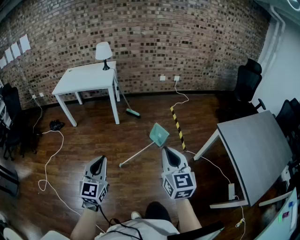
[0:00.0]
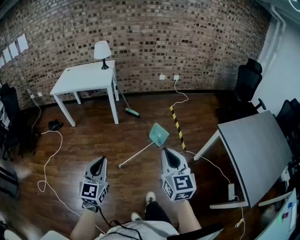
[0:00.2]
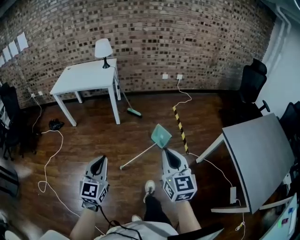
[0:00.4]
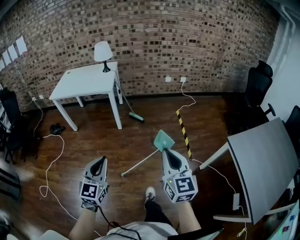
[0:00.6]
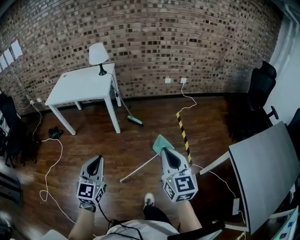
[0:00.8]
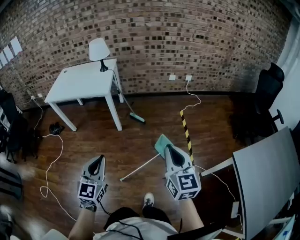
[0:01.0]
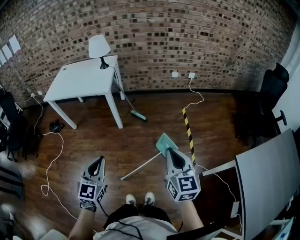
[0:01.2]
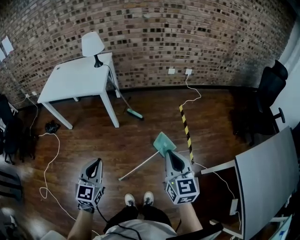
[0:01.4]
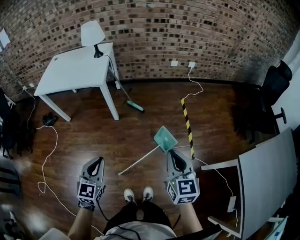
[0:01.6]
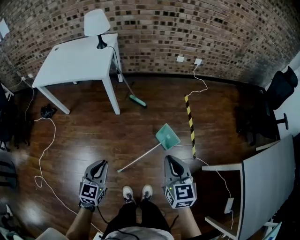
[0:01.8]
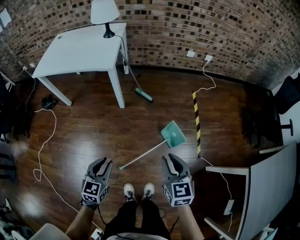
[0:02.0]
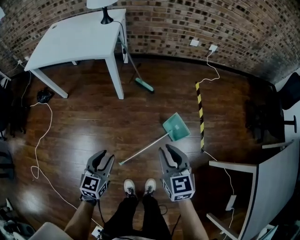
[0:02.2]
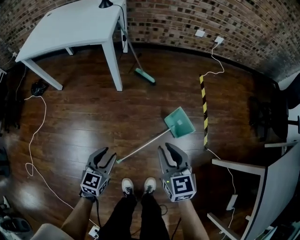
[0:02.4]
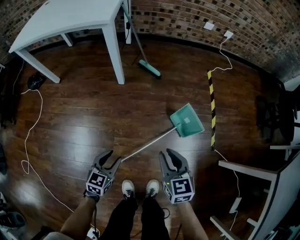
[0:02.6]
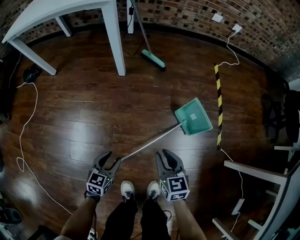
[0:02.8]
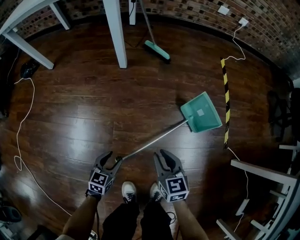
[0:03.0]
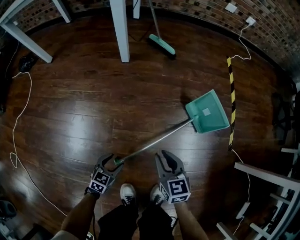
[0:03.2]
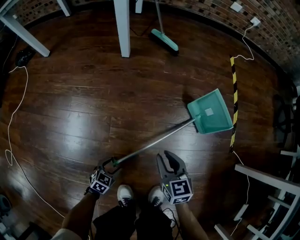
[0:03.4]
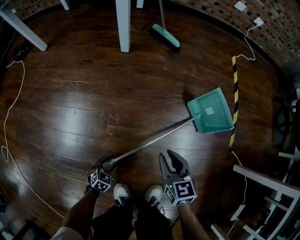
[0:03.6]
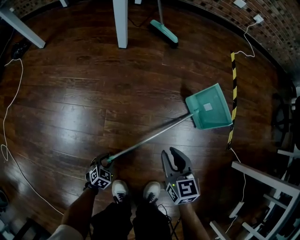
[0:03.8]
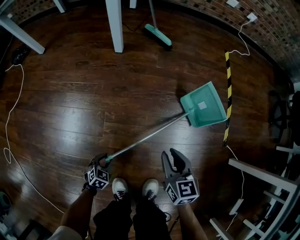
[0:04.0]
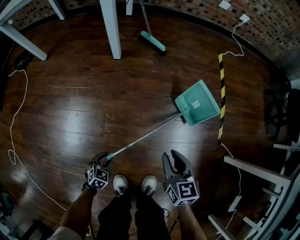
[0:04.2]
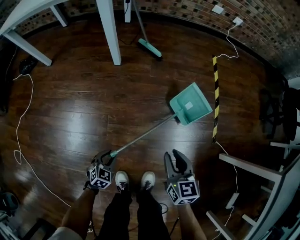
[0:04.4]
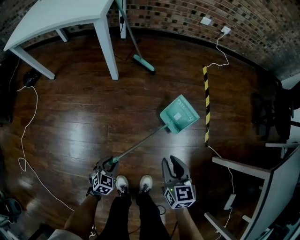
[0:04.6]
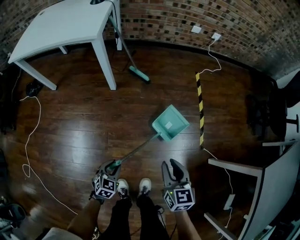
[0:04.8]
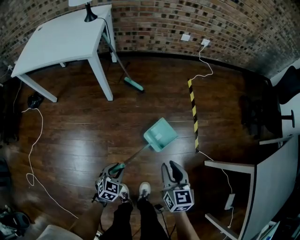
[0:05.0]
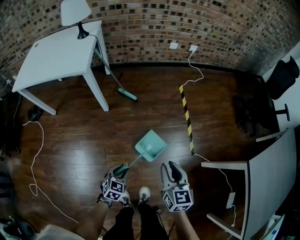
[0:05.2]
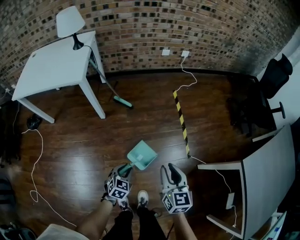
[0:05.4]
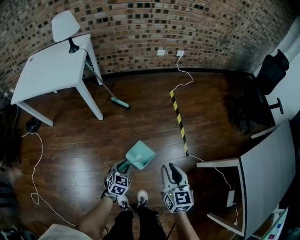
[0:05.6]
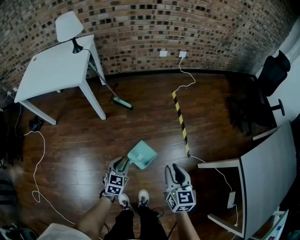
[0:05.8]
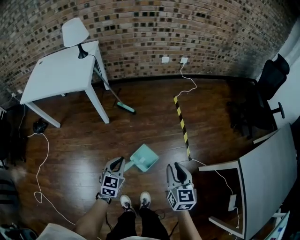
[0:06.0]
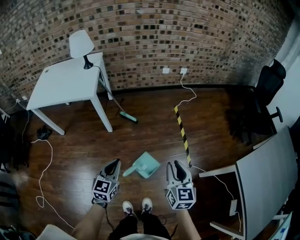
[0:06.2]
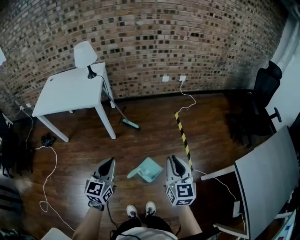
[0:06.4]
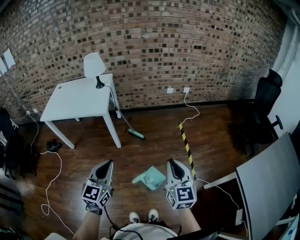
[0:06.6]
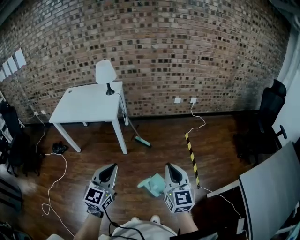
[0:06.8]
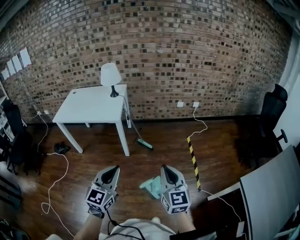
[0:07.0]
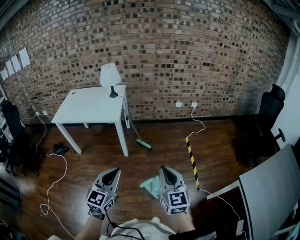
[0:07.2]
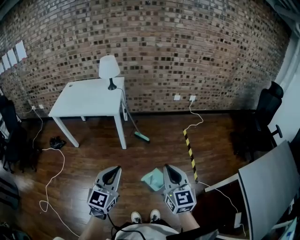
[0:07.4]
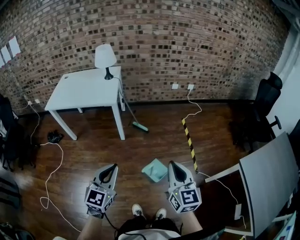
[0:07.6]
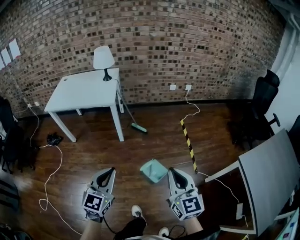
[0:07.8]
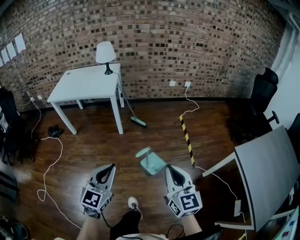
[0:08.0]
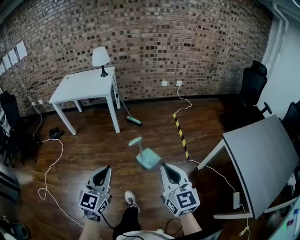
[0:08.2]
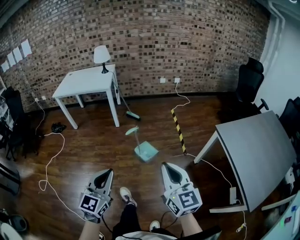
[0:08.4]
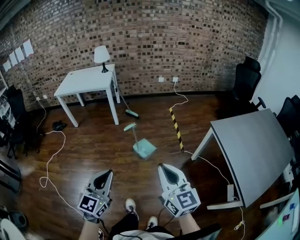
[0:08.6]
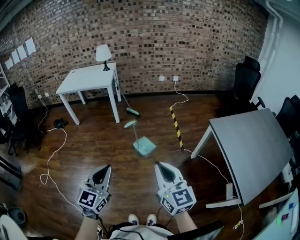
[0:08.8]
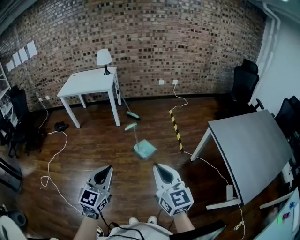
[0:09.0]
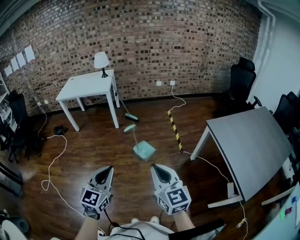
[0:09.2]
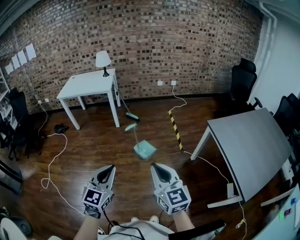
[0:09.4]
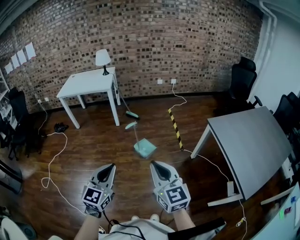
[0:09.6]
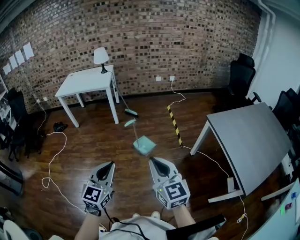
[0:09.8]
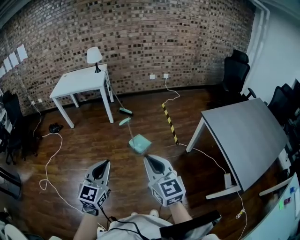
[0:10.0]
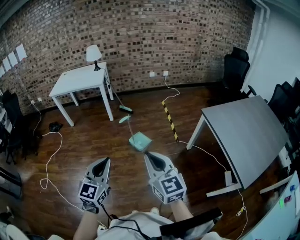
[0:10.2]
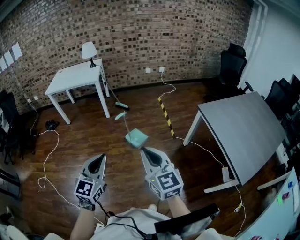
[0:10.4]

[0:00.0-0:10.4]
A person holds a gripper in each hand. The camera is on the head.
0:00.0 to 0:01.4: The grippers both shift forward by approximately 35 cm.
0:01.4 to 0:03.0: Both grippers travel together downward, some 70 cm. The left gripper swivels roughly 30 degrees, and opens its fingers, while the right gripper changes its angle by roughly 30 degrees, and opens its fingers.
0:03.0 to 0:04.4: The right gripper travels upward and to the right by some 15 cm. The left gripper goes downward and returns, some 20 cm each way, and changes its angle by some 20 degrees.
0:04.4 to 0:06.0: The left gripper shifts roughly 50 cm upward, changes its angle by some 30 degrees, and closes up; the right gripper is displaced upward and to the right by some 40 cm.
0:06.0 to 0:07.4: The right gripper shifts approximately 25 cm upward and to the left, changes its angle by approximately 20 degrees, and closes up. Meanwhile the left gripper heads upward and backward, covering roughly 30 cm, and turns by about 30 degrees.
0:07.4 to 0:09.0: The two grippers travel together, backward, some 50 cm.
0:09.0 to 0:10.4: The grippers stay close to where they were, moving slightly.

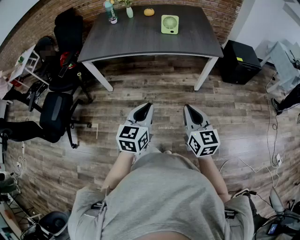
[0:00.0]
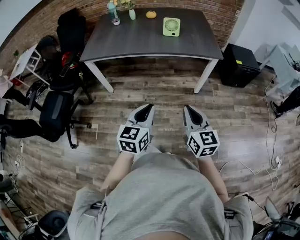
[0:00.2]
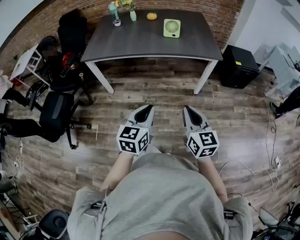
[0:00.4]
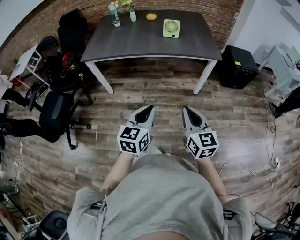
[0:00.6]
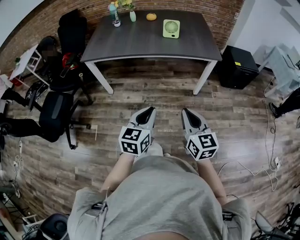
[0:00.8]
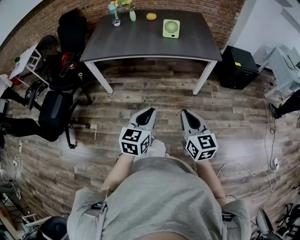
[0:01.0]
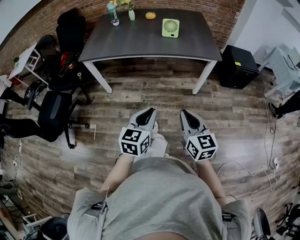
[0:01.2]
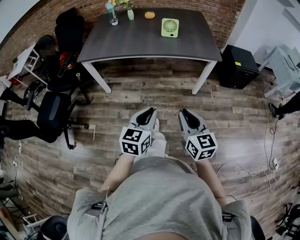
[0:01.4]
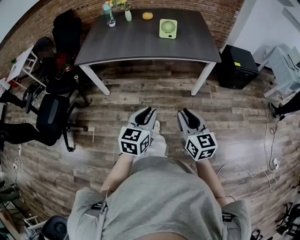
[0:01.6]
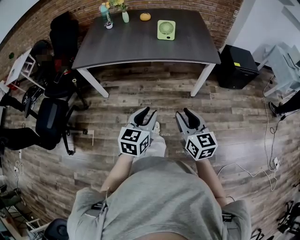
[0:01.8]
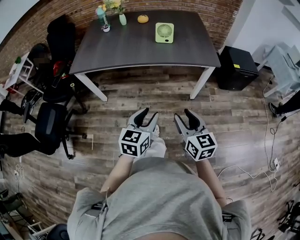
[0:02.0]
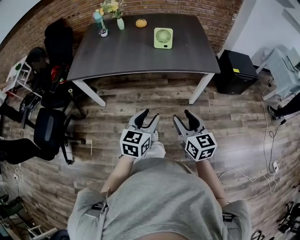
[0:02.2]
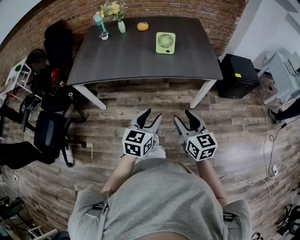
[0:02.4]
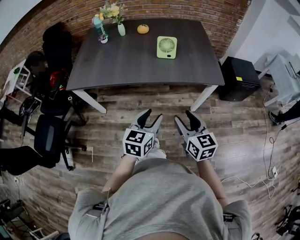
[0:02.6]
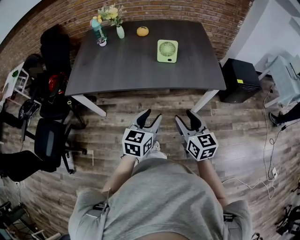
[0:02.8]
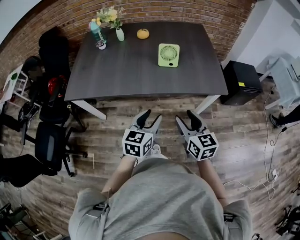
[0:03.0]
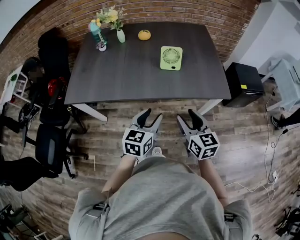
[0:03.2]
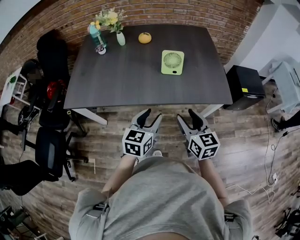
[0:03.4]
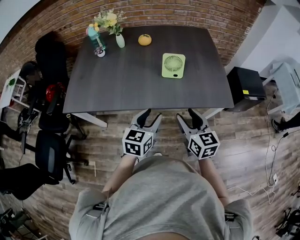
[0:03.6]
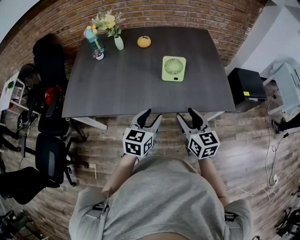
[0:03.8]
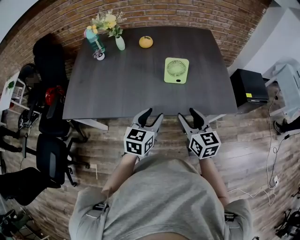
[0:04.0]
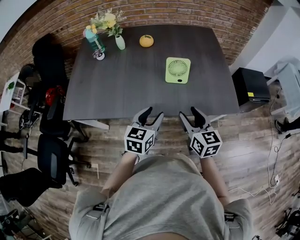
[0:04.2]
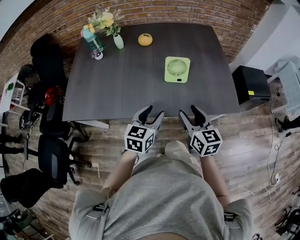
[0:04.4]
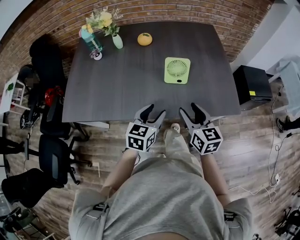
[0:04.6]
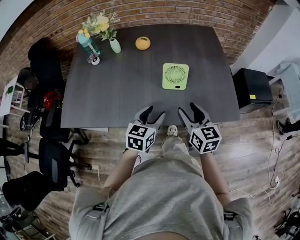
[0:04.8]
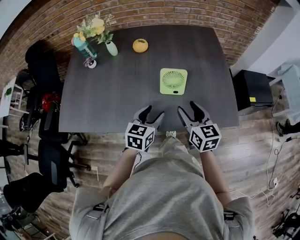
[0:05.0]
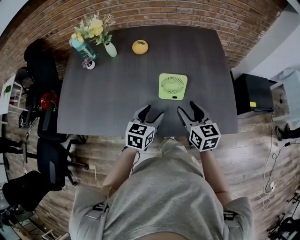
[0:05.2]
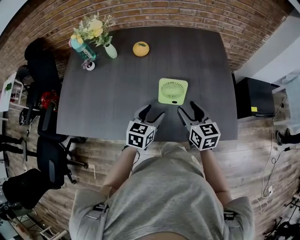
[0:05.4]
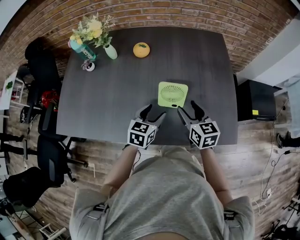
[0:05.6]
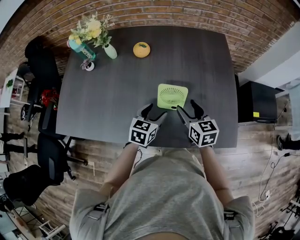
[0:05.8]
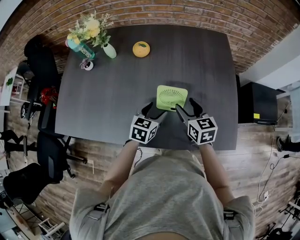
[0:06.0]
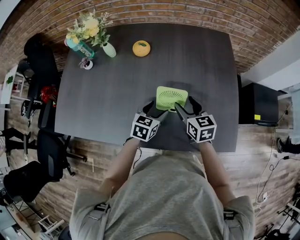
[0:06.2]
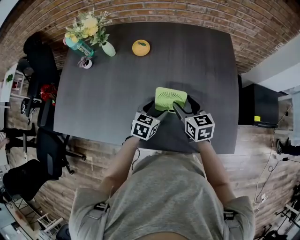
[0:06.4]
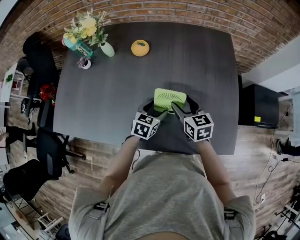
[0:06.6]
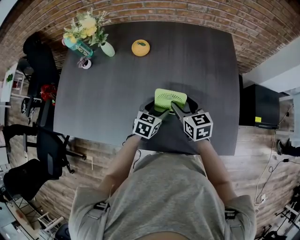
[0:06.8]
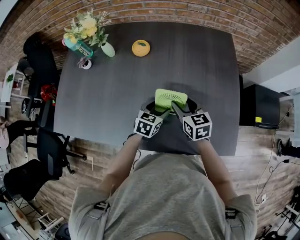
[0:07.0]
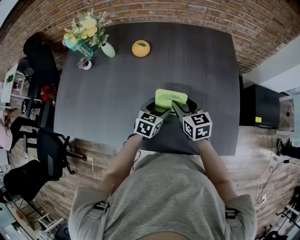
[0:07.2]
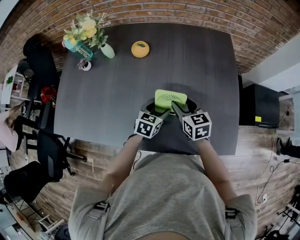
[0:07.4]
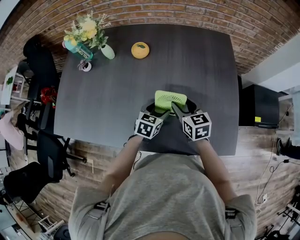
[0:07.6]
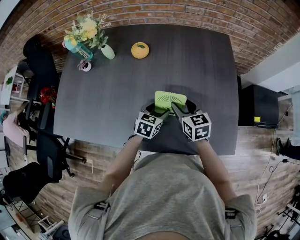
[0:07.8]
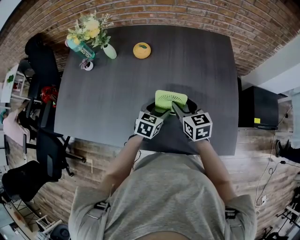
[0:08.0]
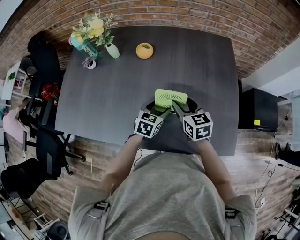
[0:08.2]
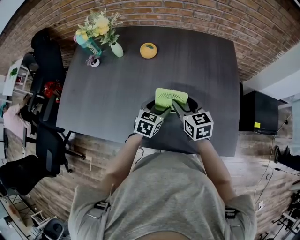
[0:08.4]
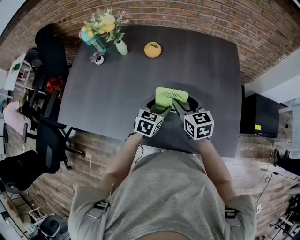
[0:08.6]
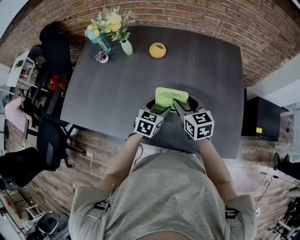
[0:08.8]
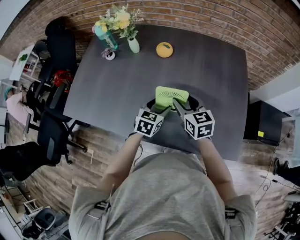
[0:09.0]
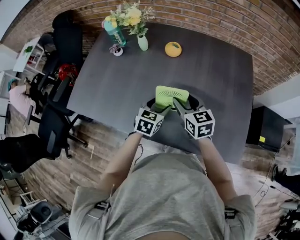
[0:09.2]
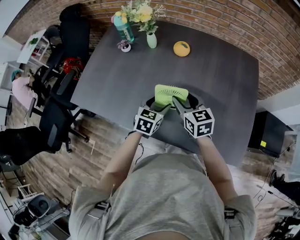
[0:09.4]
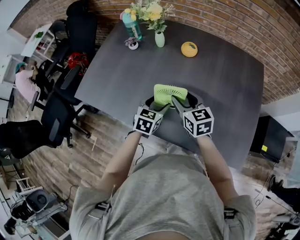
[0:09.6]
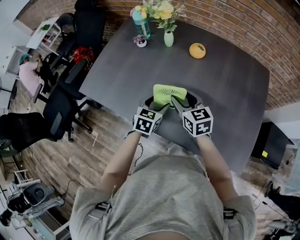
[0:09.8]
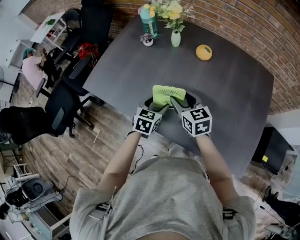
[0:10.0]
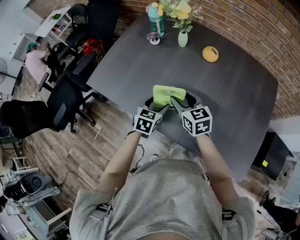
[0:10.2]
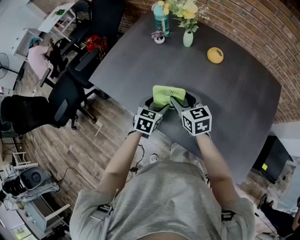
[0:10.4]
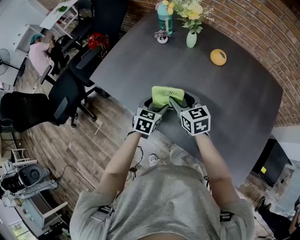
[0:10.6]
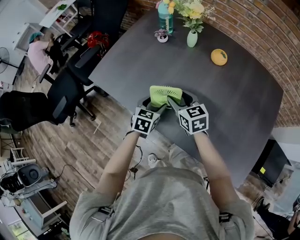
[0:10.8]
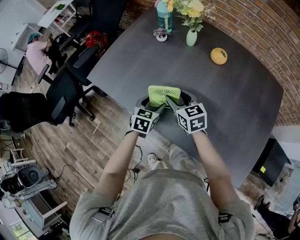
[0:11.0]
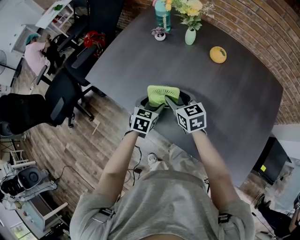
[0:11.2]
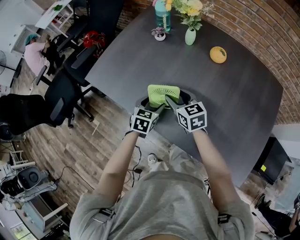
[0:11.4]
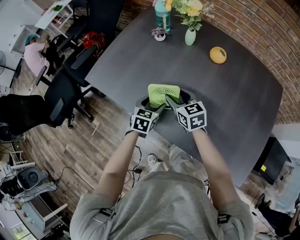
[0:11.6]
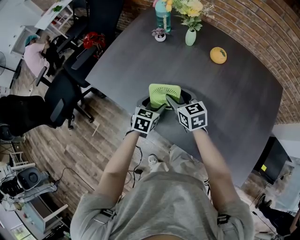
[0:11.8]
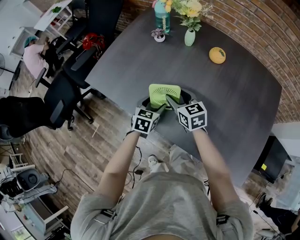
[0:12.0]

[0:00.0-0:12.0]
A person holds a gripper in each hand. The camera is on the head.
0:00.0 to 0:01.6: The right gripper opens.
0:01.6 to 0:03.0: Both grippers move forward, some 30 cm. The right gripper opens up. The left gripper opens its fingers.
0:03.0 to 0:04.4: The two grippers go roughly 20 cm forward.
0:04.4 to 0:06.0: The left gripper shifts some 25 cm forward and downward; the right gripper shifts about 25 cm forward.
0:06.0 to 0:07.6: The left gripper changes place by roughly 5 cm.
0:07.6 to 0:09.0: Both grippers travel together to the left and upward, about 10 cm.
0:09.0 to 0:10.4: Both grippers travel together to the left, approximately 20 cm. The right gripper turns by approximately 20 degrees; the left gripper changes its angle by some 20 degrees.
0:10.4 to 0:12.0: The right gripper moves approximately 5 cm, while the left gripper shifts by about 5 cm.

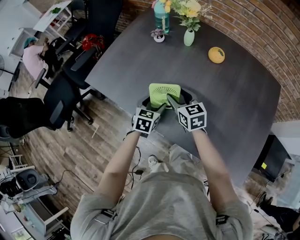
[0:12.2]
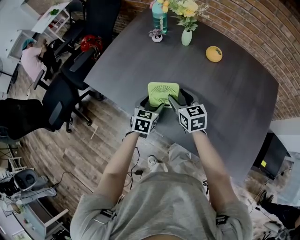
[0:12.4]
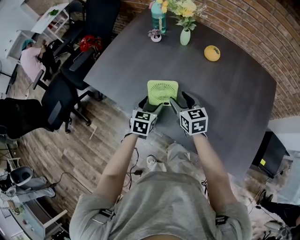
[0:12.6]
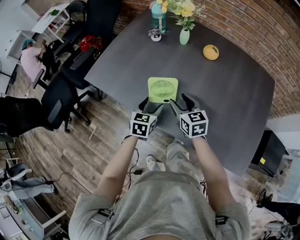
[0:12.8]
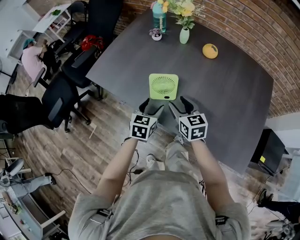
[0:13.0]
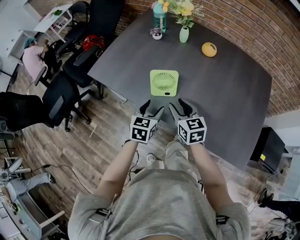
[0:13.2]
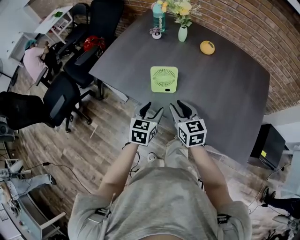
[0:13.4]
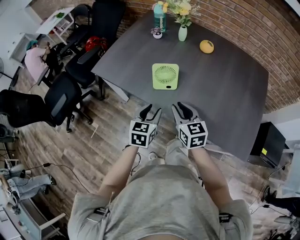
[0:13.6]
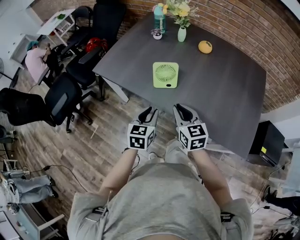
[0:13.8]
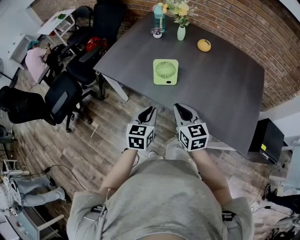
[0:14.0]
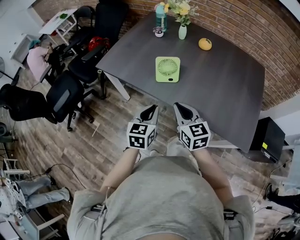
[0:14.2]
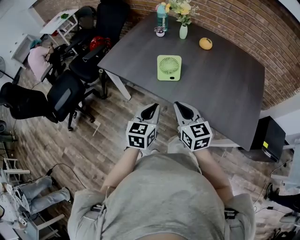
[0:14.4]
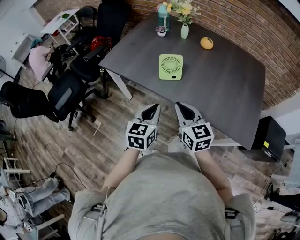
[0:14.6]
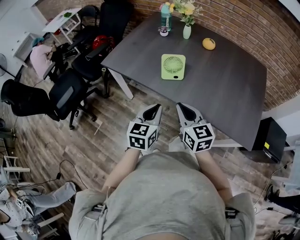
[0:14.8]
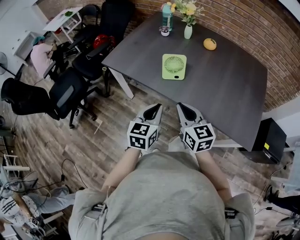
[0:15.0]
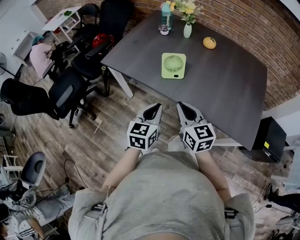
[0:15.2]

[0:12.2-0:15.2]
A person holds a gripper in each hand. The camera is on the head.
0:12.2 to 0:13.8: The right gripper travels backward by about 25 cm, and closes up. The left gripper travels backward and upward by some 25 cm, and closes up.
0:13.8 to 0:15.2: The grippers both shift backward by some 5 cm.
